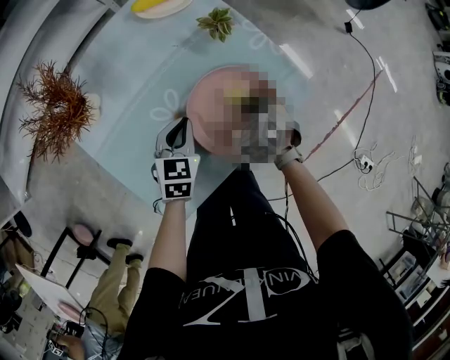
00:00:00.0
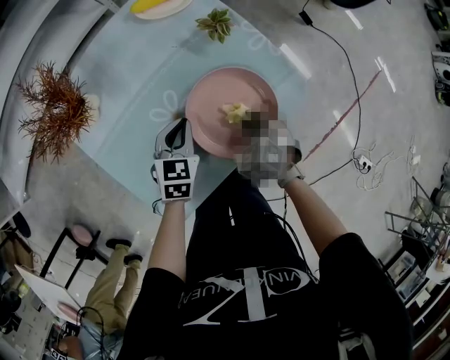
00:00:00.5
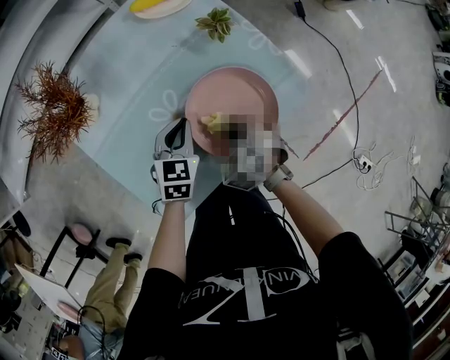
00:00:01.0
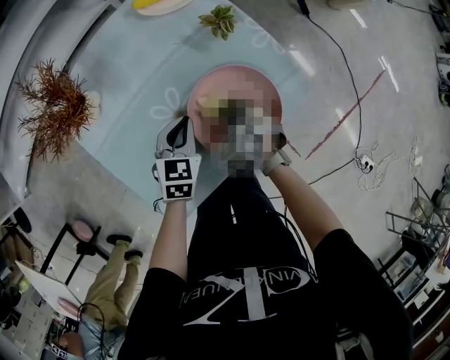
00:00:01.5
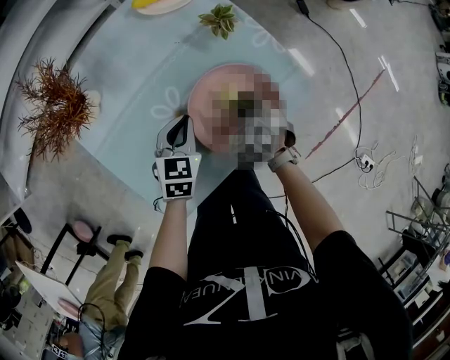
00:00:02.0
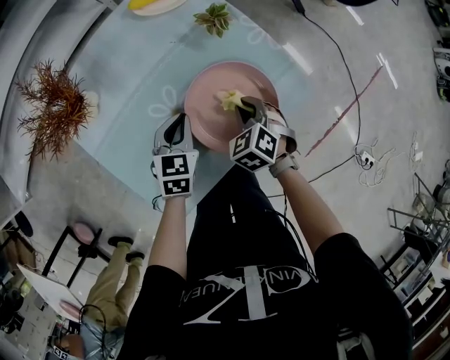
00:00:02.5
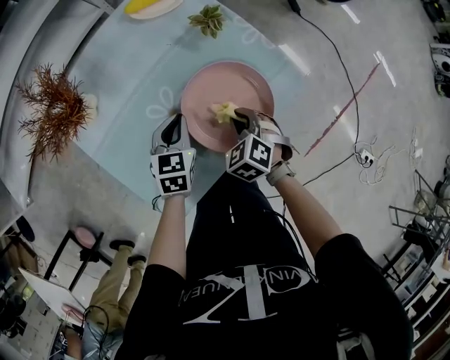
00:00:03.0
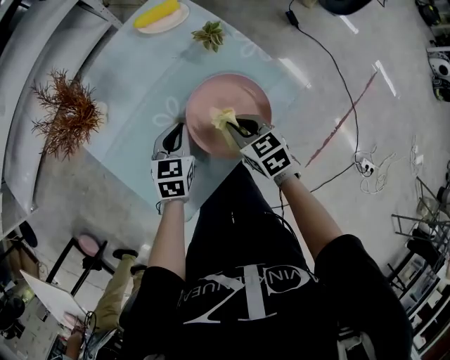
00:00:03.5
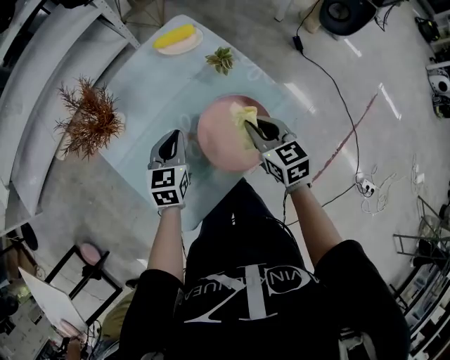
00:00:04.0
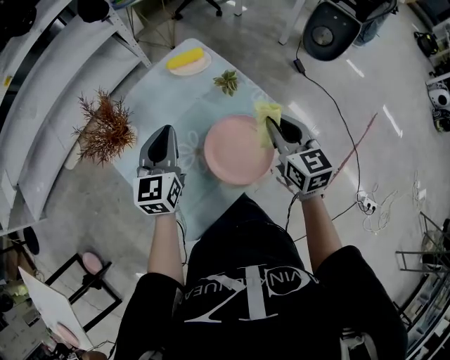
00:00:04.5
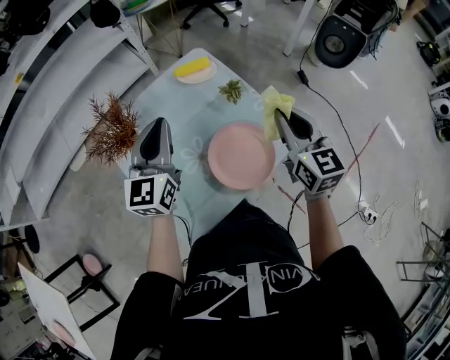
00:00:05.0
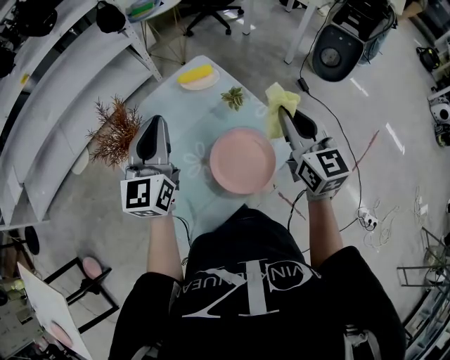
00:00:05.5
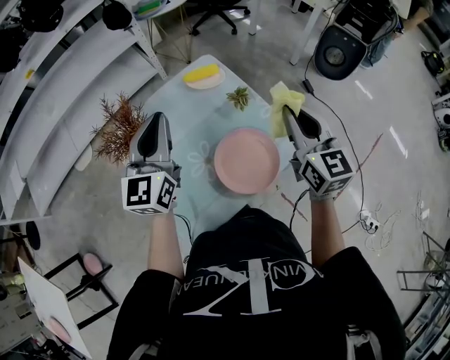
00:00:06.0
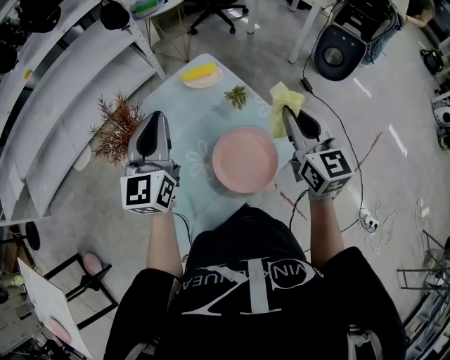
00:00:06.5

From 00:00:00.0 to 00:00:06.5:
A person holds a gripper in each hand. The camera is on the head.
From 00:00:02.0 to 00:00:04.5: The two grippers go about 25 cm upward. The left gripper changes its angle by some 30 degrees. Meanwhile the right gripper tilts its fingers roughly 40 degrees upward.
From 00:00:04.5 to 00:00:06.5: The grippers both shift upward by some 10 cm.

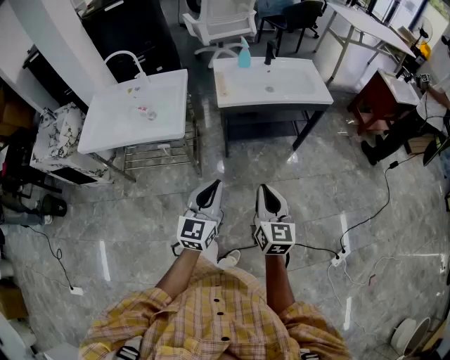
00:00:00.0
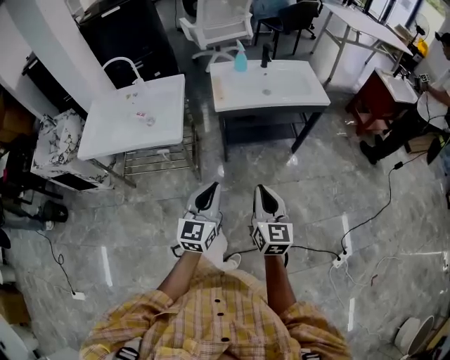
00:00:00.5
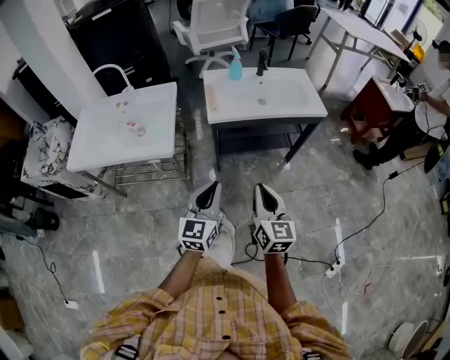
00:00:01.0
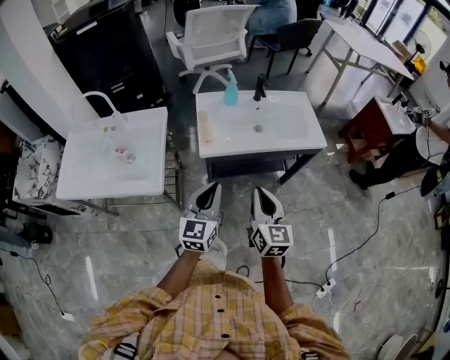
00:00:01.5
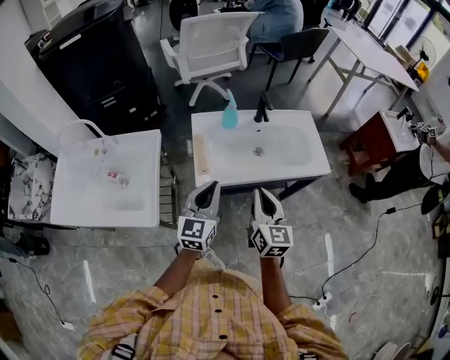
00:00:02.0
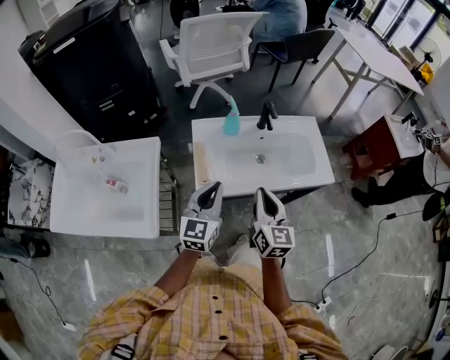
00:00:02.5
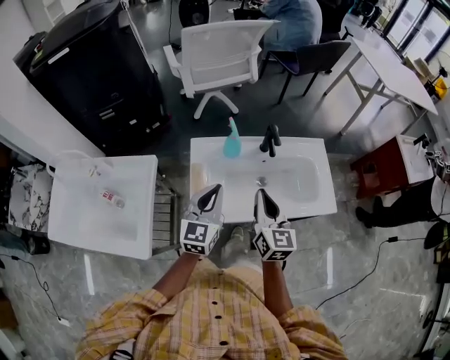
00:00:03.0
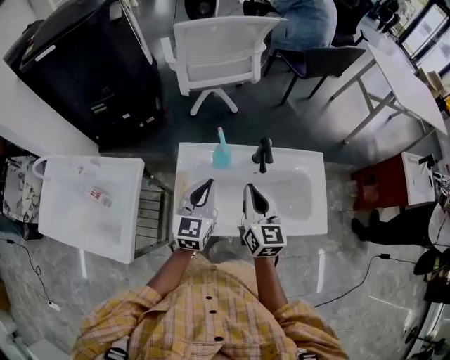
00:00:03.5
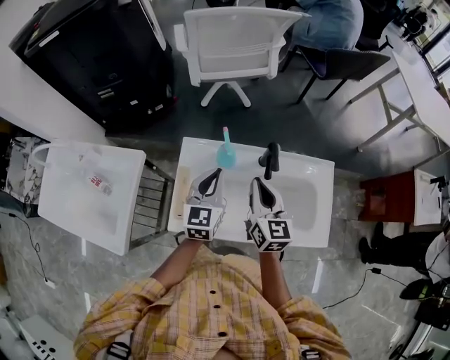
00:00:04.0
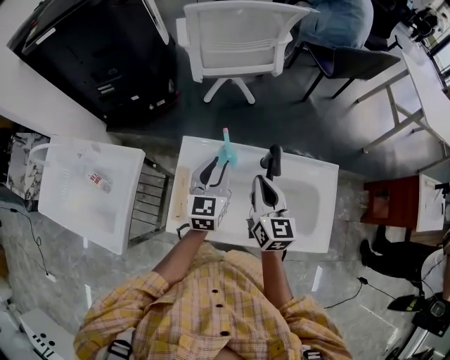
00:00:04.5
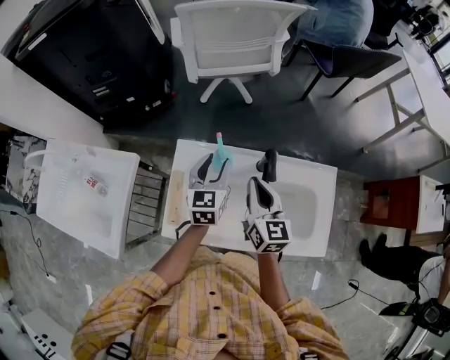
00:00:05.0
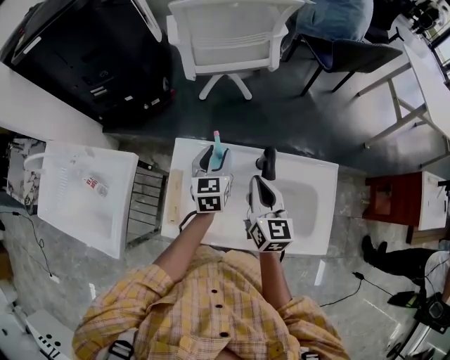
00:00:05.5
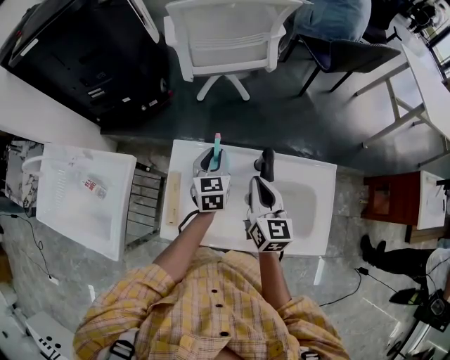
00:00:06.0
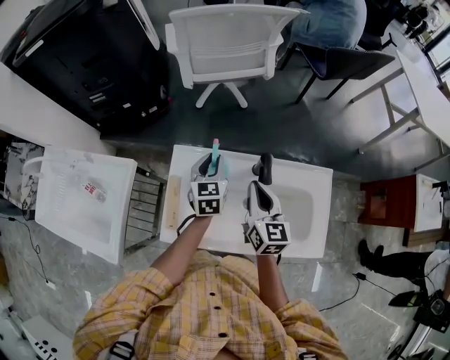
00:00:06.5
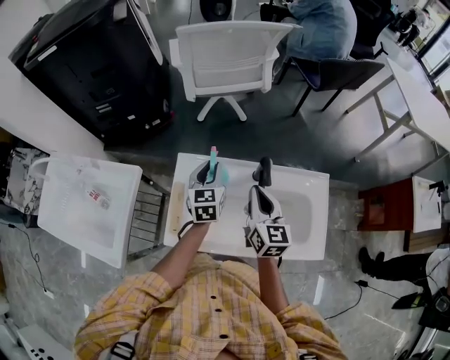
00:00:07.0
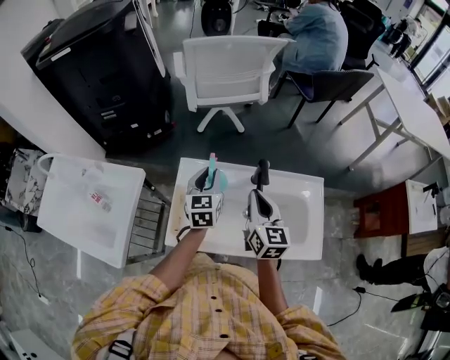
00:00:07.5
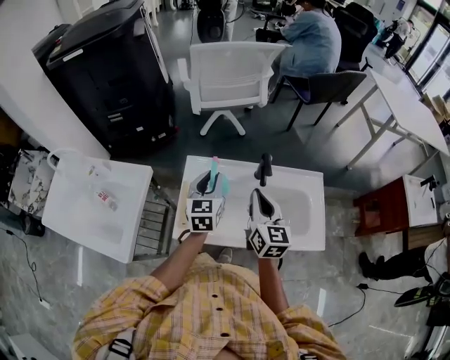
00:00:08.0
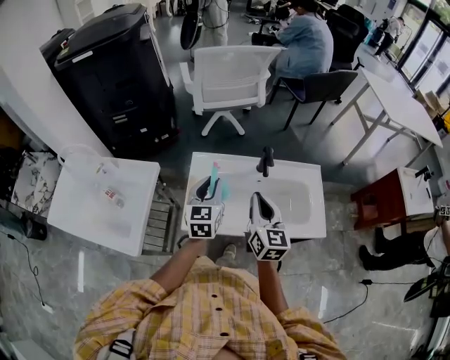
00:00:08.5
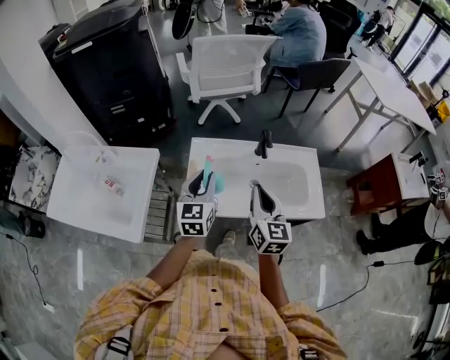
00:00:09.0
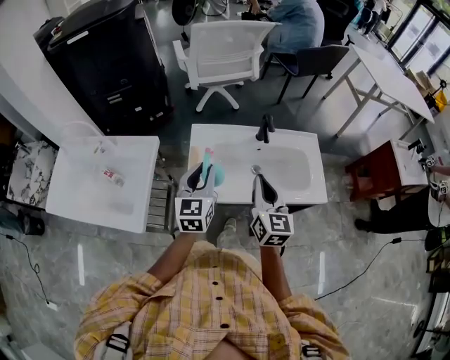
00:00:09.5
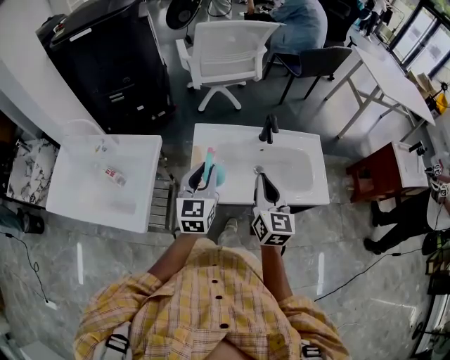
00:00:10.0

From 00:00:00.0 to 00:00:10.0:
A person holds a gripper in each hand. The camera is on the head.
From 00:00:00.0 to 00:00:02.0: Both grippers move forward, some 40 cm.
From 00:00:02.0 to 00:00:04.0: Both grippers move forward, about 30 cm.
From 00:00:04.0 to 00:00:06.0: The left gripper travels forward and downward by approximately 15 cm, and opens, then closes once more, while the right gripper shifts by roughly 5 cm.
From 00:00:06.0 to 00:00:08.0: The left gripper moves upward and backward, approximately 15 cm; the right gripper is displaced backward and upward by some 10 cm.
From 00:00:08.0 to 00:00:10.0: The right gripper travels backward by approximately 15 cm. The left gripper is displaced backward and to the left by some 15 cm.

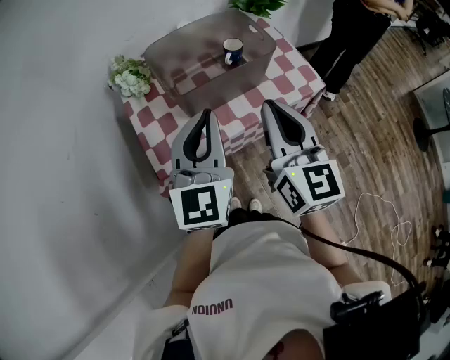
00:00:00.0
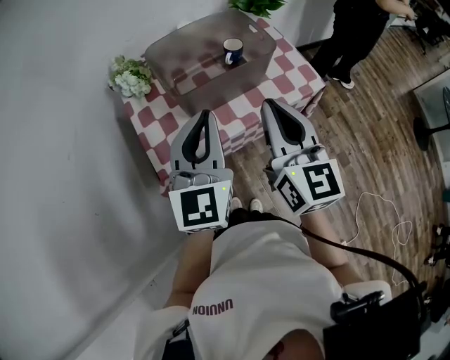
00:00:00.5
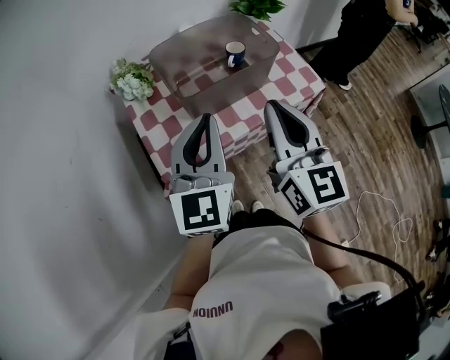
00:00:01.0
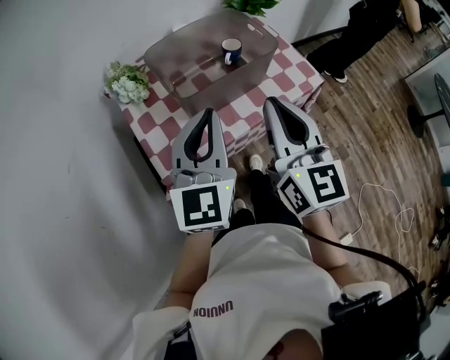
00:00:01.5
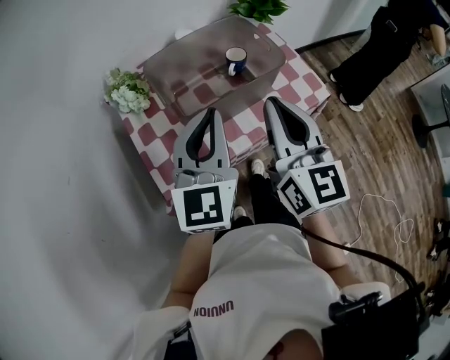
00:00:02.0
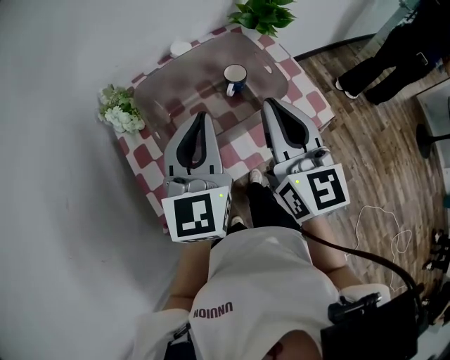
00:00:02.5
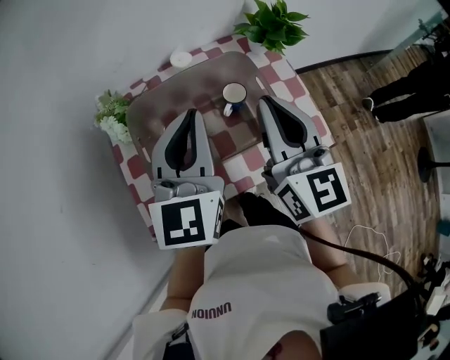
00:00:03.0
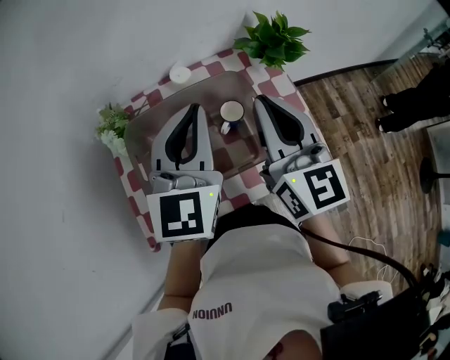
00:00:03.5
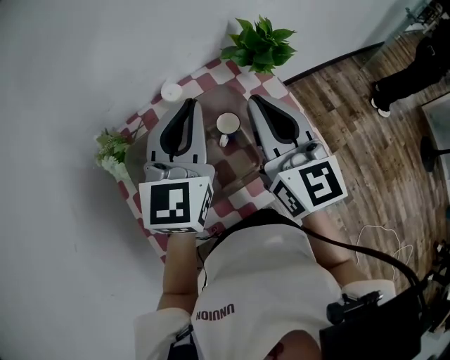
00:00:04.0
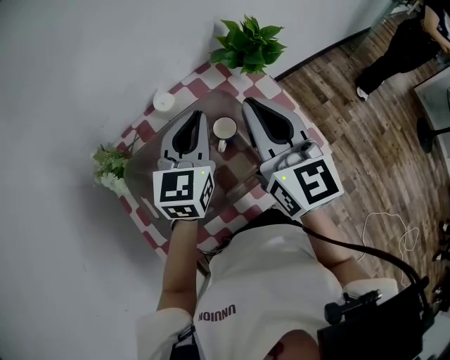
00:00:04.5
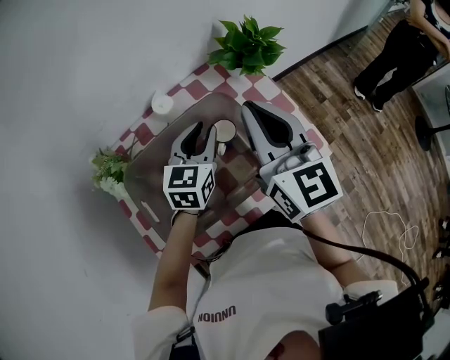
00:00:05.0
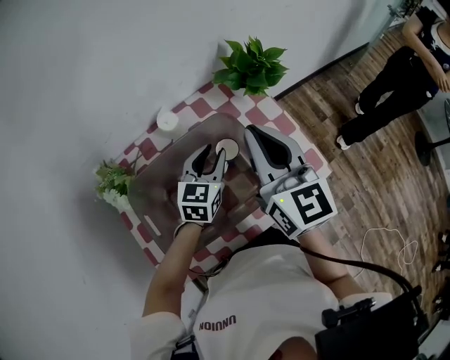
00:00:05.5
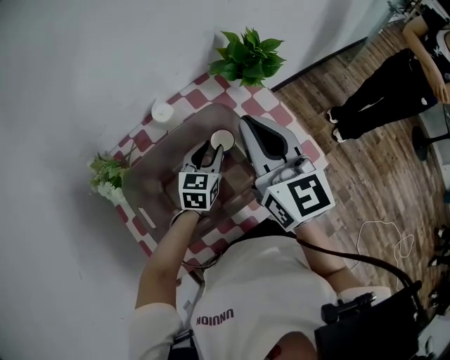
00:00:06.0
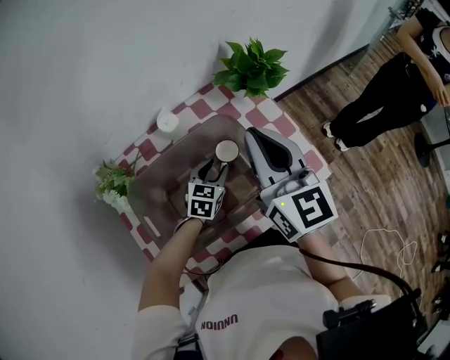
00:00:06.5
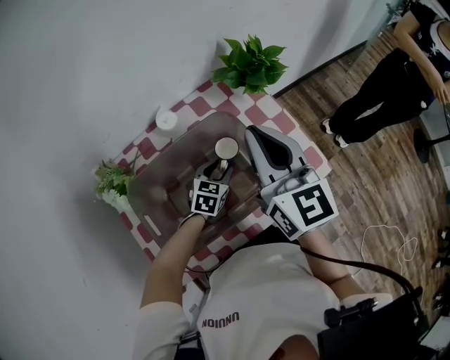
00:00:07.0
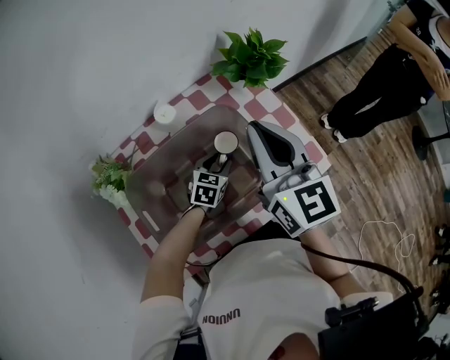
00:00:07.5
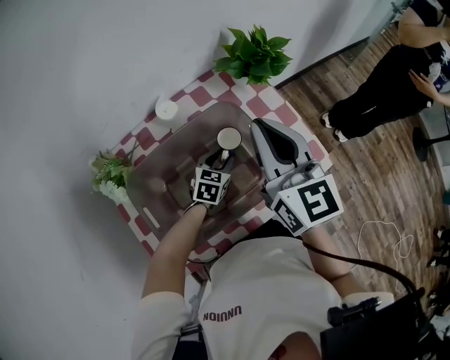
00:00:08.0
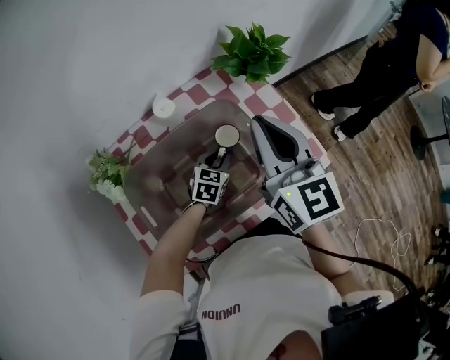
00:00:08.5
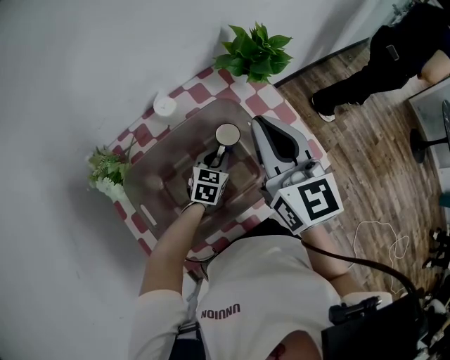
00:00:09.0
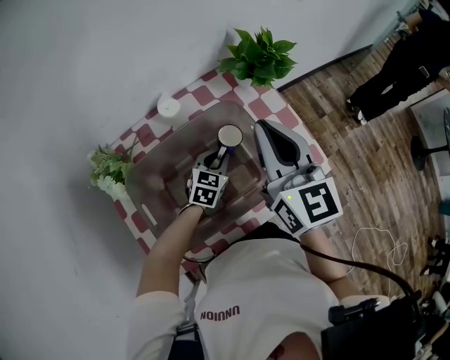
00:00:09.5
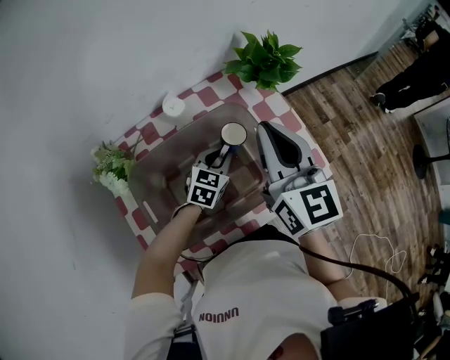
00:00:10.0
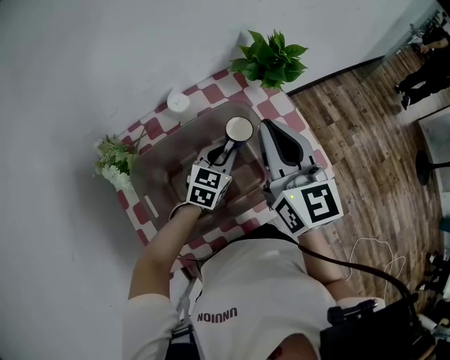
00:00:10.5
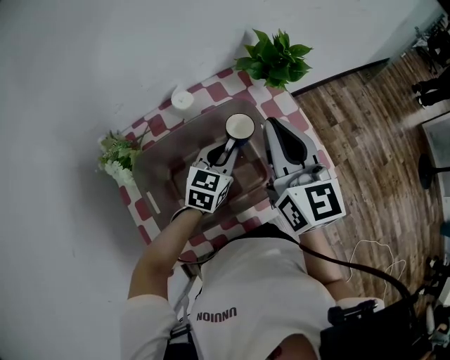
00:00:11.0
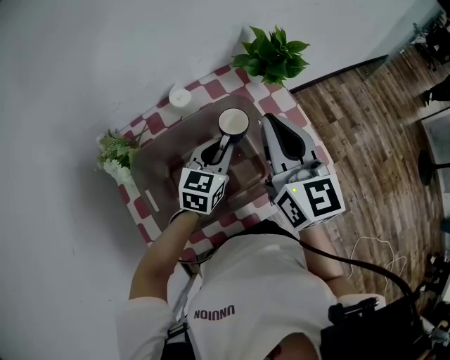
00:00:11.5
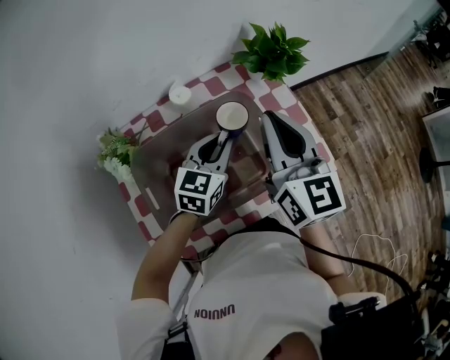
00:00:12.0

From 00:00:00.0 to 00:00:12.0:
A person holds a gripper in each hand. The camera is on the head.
From 00:00:00.0 to 00:00:02.0: Both grippers move forward, about 5 cm.
From 00:00:02.0 to 00:00:04.0: The grippers both shift forward by approximately 25 cm.
From 00:00:04.0 to 00:00:06.0: The left gripper is displaced downward by roughly 25 cm, turns by roughly 30 degrees, and opens.
From 00:00:06.0 to 00:00:08.0: The left gripper goes approximately 10 cm downward.
From 00:00:08.0 to 00:00:10.0: The left gripper is displaced upward by about 5 cm, and closes.
From 00:00:10.0 to 00:00:12.0: The left gripper heads upward, covering approximately 10 cm.
